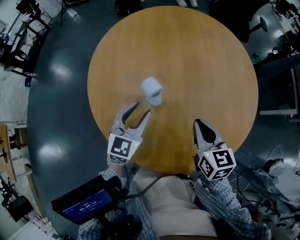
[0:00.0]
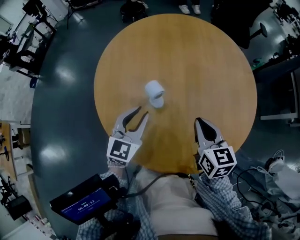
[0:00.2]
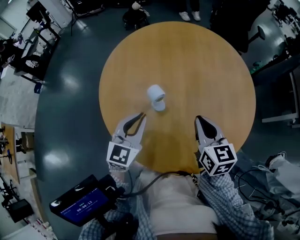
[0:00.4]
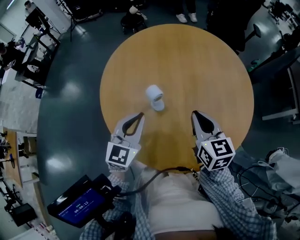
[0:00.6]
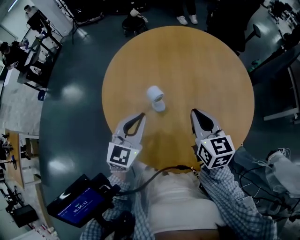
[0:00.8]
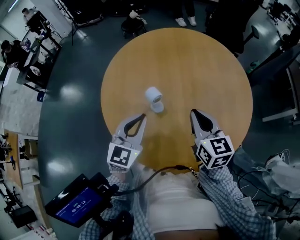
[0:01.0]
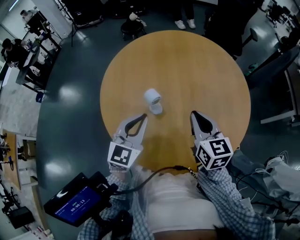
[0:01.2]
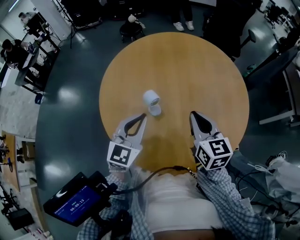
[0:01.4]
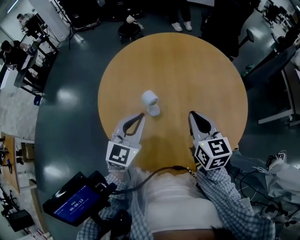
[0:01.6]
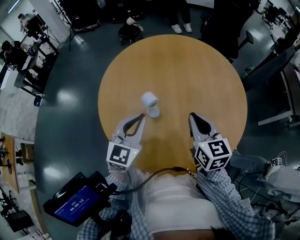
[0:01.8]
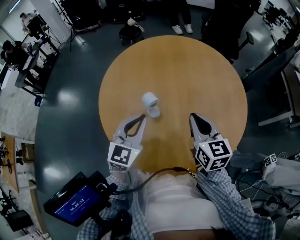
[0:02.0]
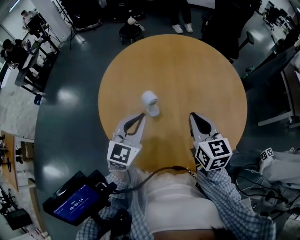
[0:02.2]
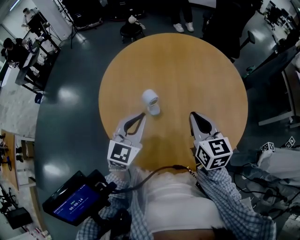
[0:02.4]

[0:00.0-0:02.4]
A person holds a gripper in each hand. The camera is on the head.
0:00.0 to 0:01.2: Both grippers move upward, about 10 cm. The left gripper closes.
0:01.2 to 0:02.4: The grippers move only a little.

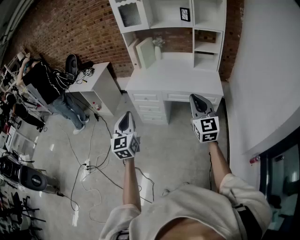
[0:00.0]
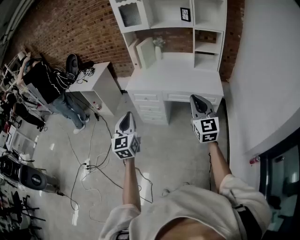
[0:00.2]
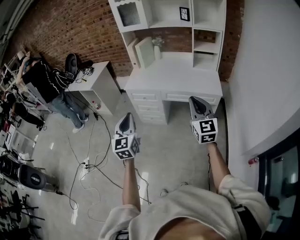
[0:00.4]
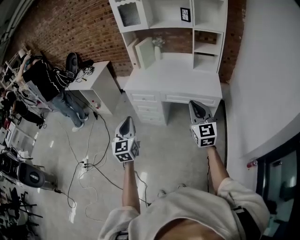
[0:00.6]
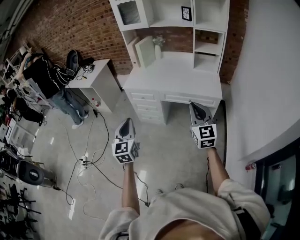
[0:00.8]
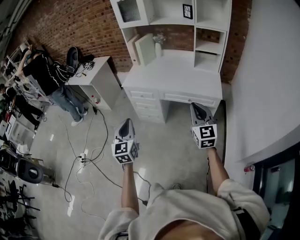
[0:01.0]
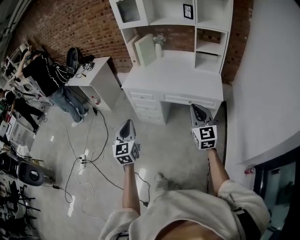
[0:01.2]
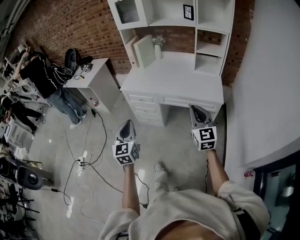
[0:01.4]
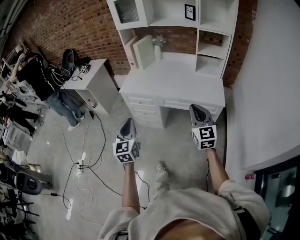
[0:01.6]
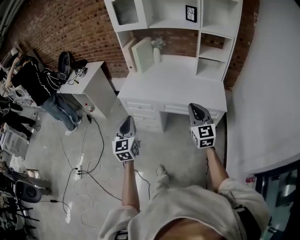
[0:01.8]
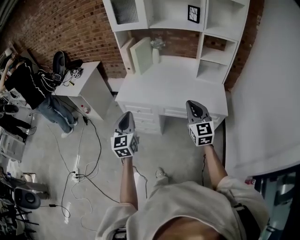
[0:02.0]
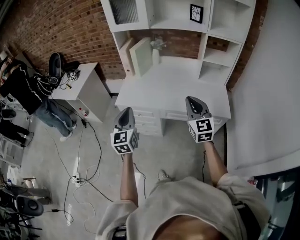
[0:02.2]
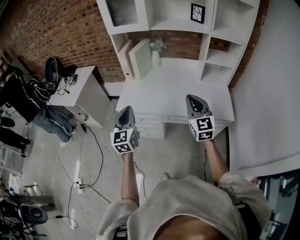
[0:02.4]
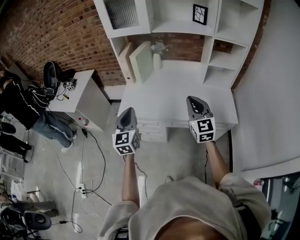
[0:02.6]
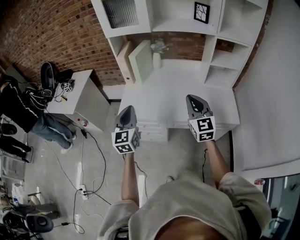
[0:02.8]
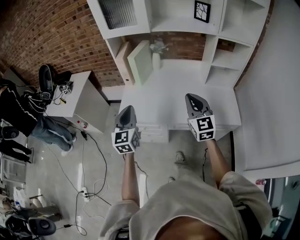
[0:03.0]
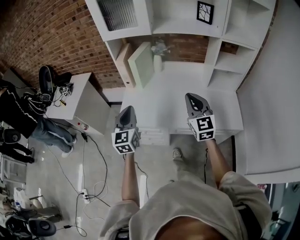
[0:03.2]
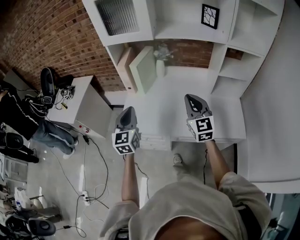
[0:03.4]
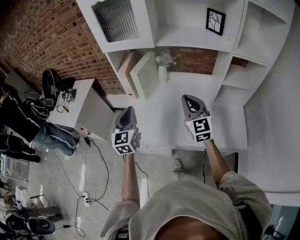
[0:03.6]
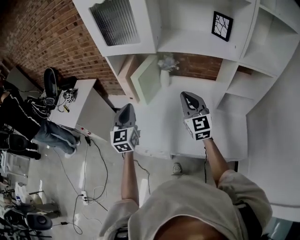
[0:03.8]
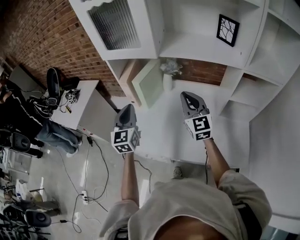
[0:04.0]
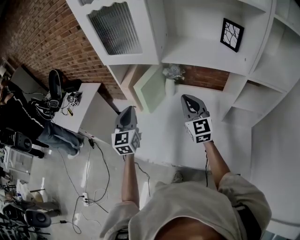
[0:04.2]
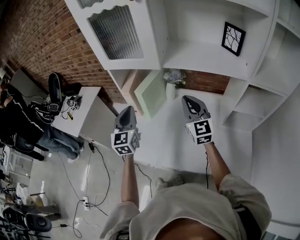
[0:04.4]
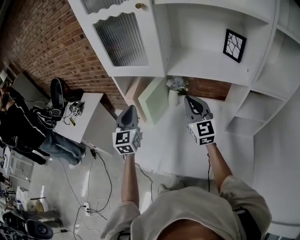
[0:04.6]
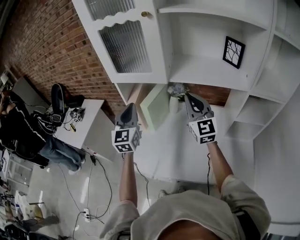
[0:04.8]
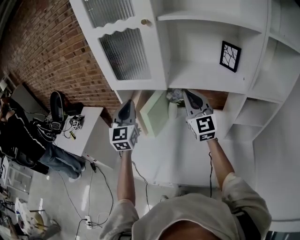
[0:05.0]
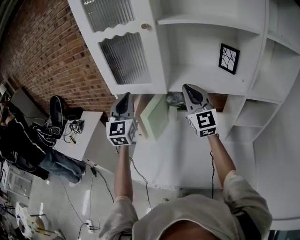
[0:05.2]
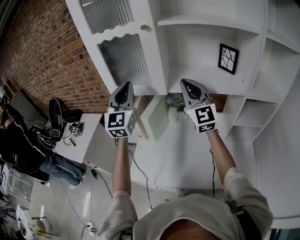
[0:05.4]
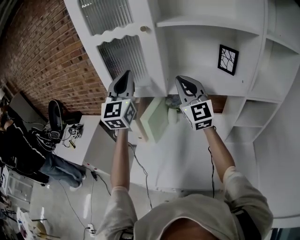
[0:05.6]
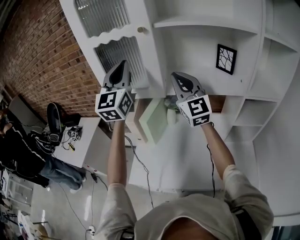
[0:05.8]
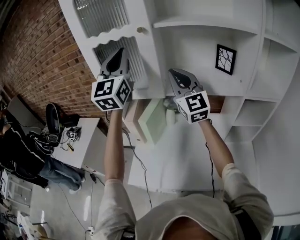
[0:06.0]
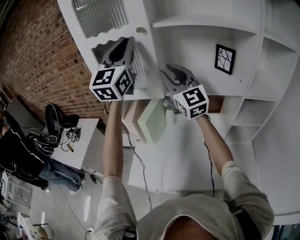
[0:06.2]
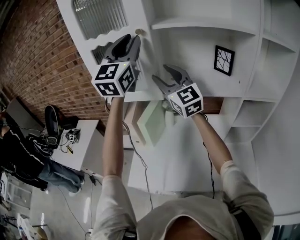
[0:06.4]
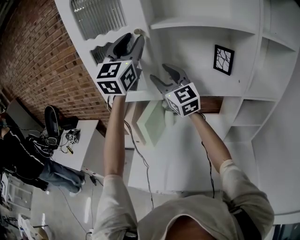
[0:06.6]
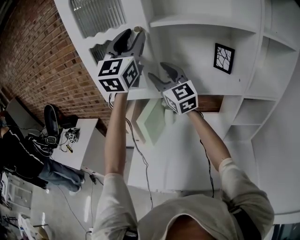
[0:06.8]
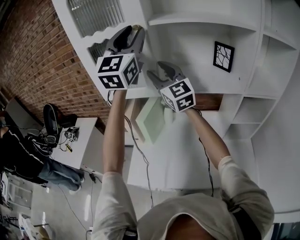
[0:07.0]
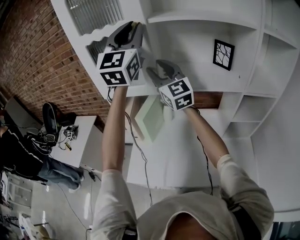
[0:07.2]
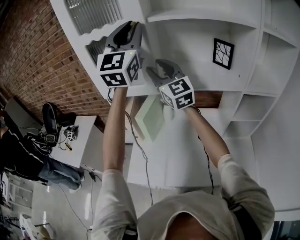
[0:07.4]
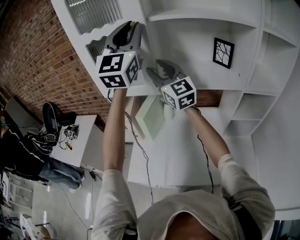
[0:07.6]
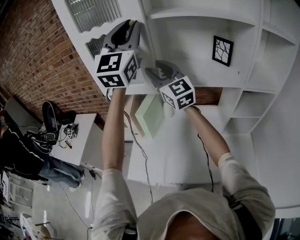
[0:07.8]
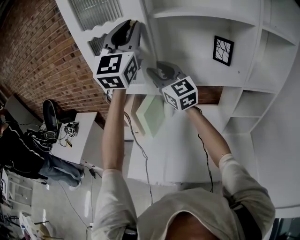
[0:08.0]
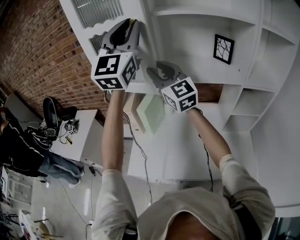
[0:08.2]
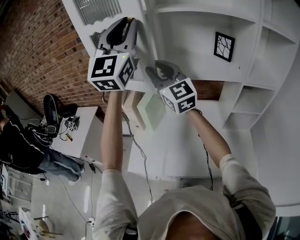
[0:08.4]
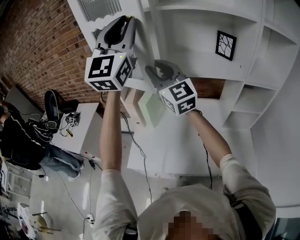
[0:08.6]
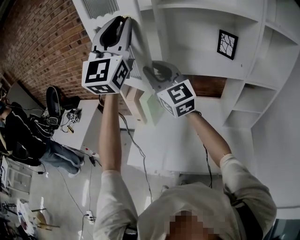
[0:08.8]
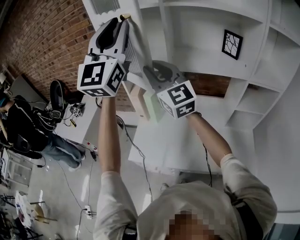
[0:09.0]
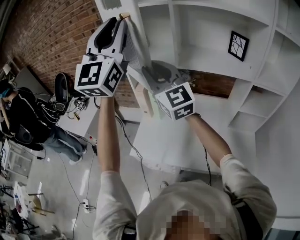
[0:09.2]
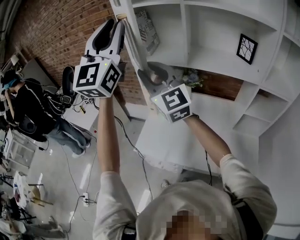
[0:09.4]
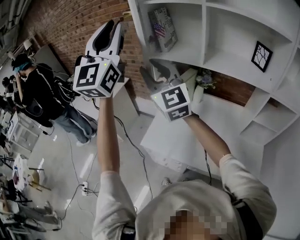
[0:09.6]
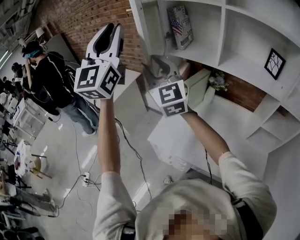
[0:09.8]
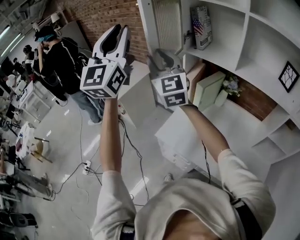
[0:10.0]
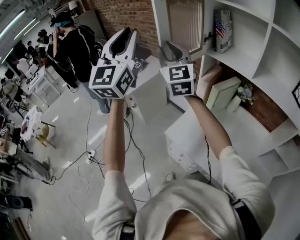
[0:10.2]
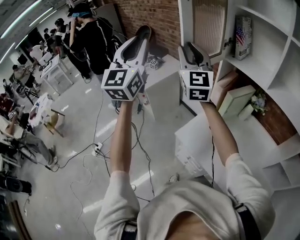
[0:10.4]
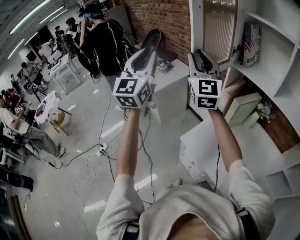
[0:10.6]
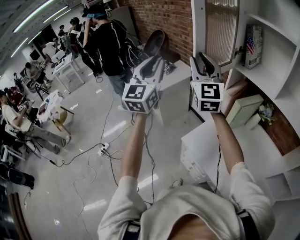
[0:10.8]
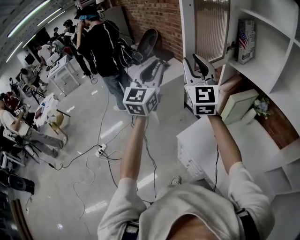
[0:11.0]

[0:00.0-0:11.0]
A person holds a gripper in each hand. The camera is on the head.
0:00.0 to 0:01.6: The grippers both shift forward, downward and to the right by about 15 cm.
0:01.6 to 0:03.2: The two grippers travel together, forward, about 40 cm.
0:03.2 to 0:04.8: Both grippers move forward and upward, about 30 cm.
0:04.8 to 0:06.2: The right gripper is displaced upward and forward by roughly 15 cm, and opens its fingers, while the left gripper heads upward, covering roughly 30 cm, and turns by roughly 30 degrees.
0:06.2 to 0:07.8: The right gripper shifts by roughly 5 cm.
0:07.8 to 0:09.4: The two grippers go roughly 20 cm backward and to the left.
0:09.4 to 0:11.0: The left gripper moves to the left and downward, approximately 30 cm, and swivels about 40 degrees. The right gripper shifts some 20 cm to the left.

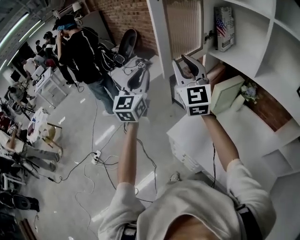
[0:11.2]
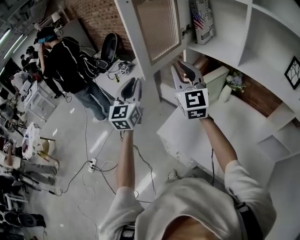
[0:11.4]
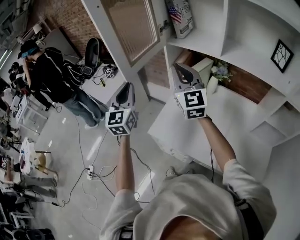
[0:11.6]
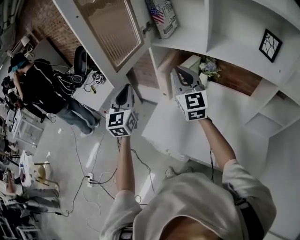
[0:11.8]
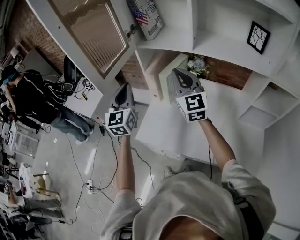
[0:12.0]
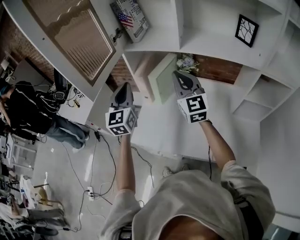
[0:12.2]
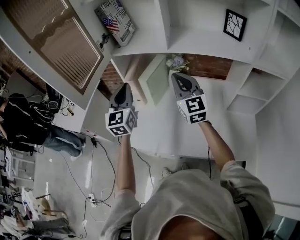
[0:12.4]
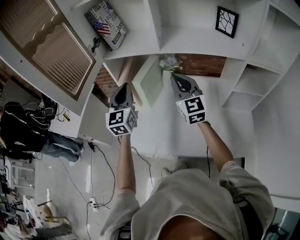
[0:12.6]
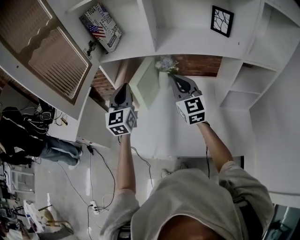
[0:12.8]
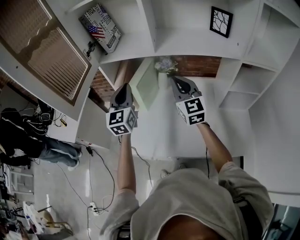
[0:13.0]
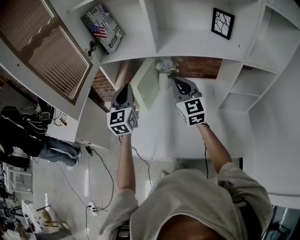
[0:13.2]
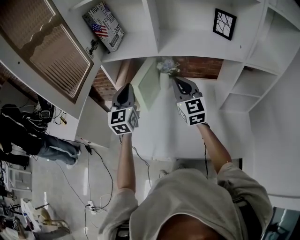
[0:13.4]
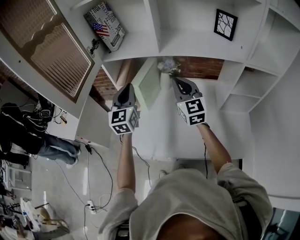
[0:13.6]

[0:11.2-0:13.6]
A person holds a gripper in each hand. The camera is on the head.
0:11.2 to 0:12.4: The left gripper ends up some 30 cm from where it was, and swivels about 20 degrees, while the right gripper changes place by some 35 cm, changes its angle by roughly 30 degrees, and closes its fingers.
0:12.4 to 0:13.6: The left gripper moves about 5 cm.

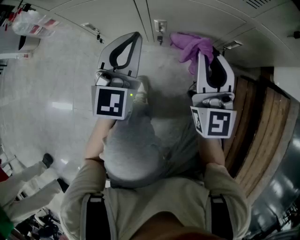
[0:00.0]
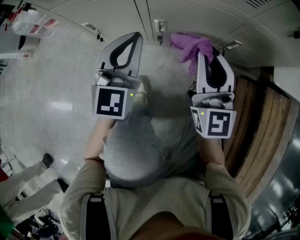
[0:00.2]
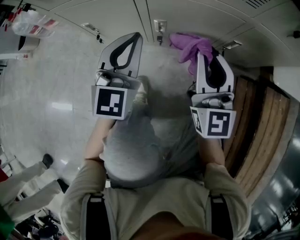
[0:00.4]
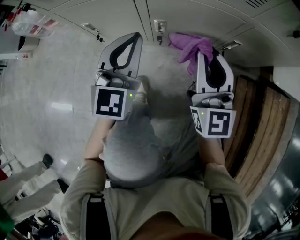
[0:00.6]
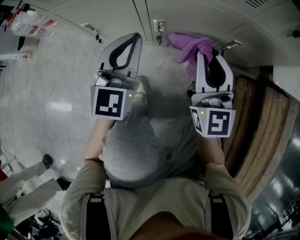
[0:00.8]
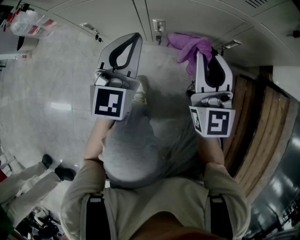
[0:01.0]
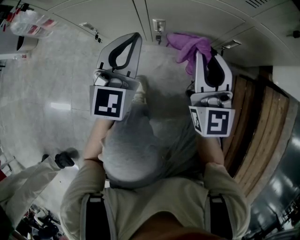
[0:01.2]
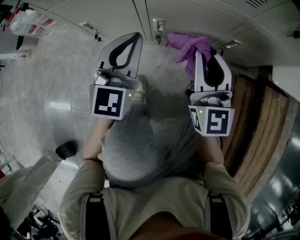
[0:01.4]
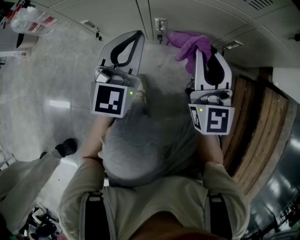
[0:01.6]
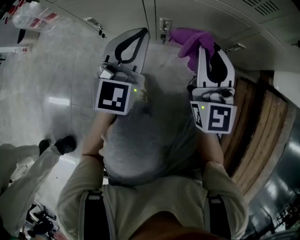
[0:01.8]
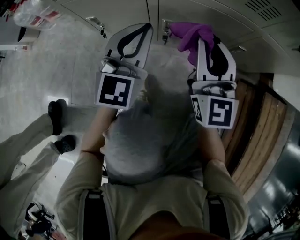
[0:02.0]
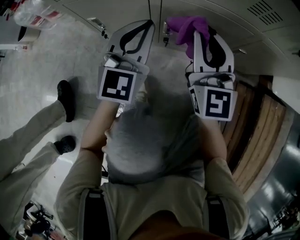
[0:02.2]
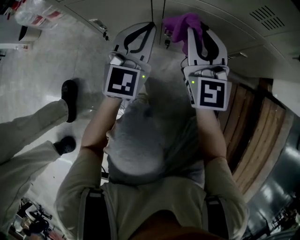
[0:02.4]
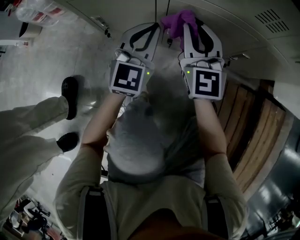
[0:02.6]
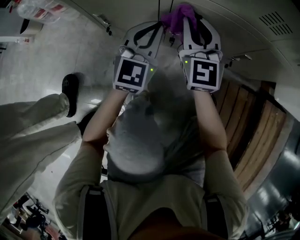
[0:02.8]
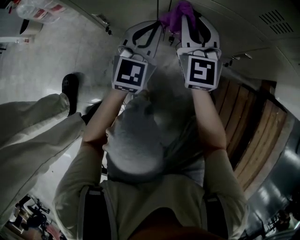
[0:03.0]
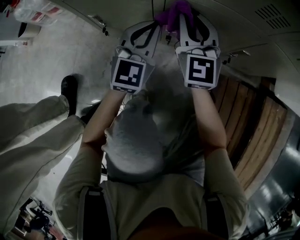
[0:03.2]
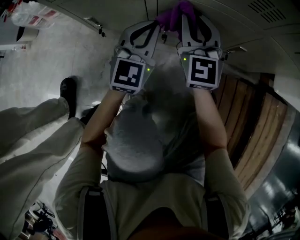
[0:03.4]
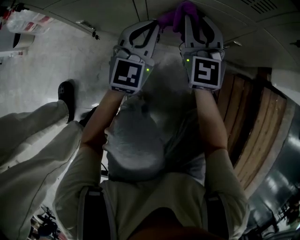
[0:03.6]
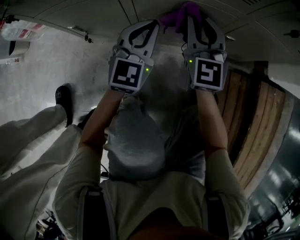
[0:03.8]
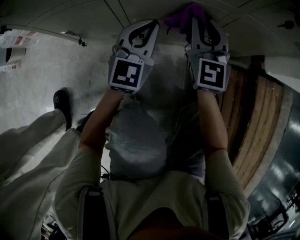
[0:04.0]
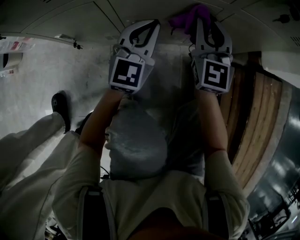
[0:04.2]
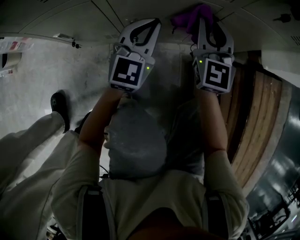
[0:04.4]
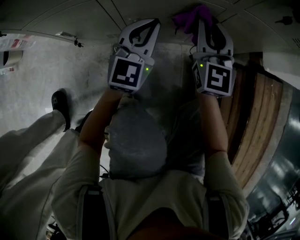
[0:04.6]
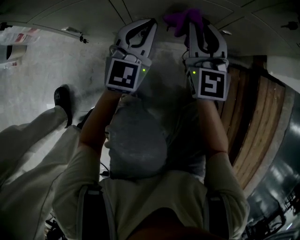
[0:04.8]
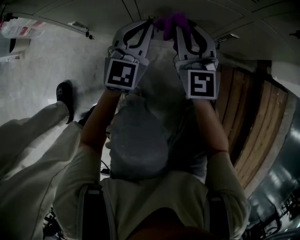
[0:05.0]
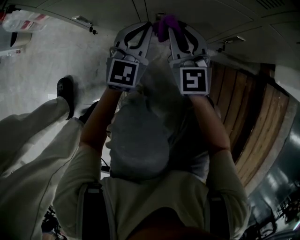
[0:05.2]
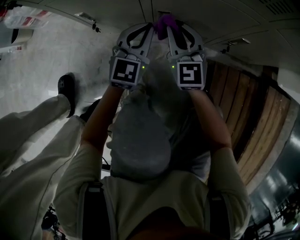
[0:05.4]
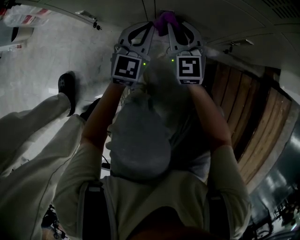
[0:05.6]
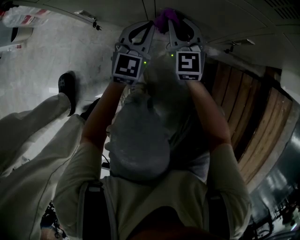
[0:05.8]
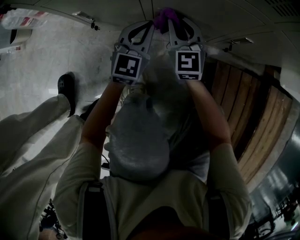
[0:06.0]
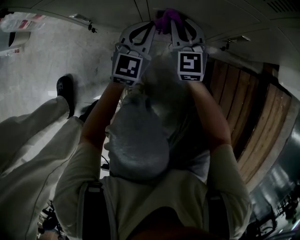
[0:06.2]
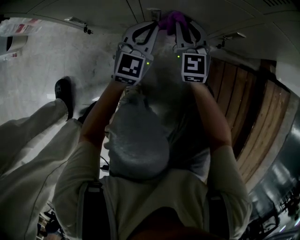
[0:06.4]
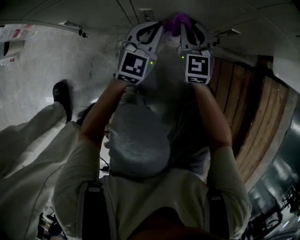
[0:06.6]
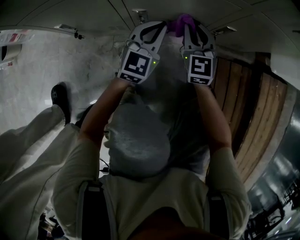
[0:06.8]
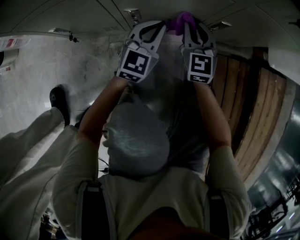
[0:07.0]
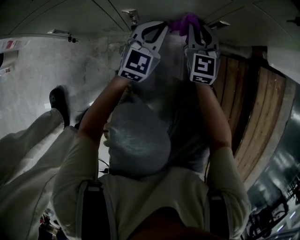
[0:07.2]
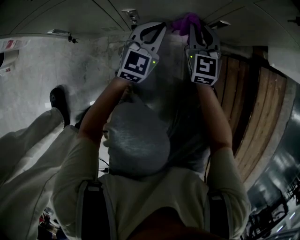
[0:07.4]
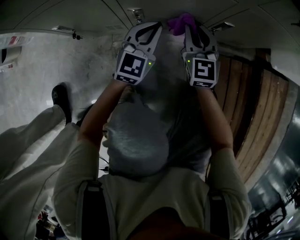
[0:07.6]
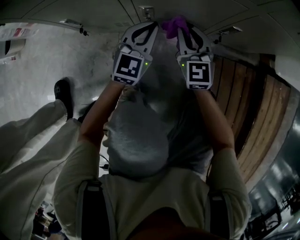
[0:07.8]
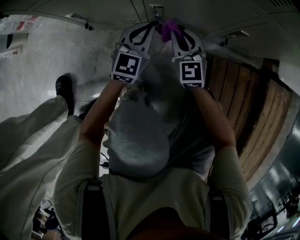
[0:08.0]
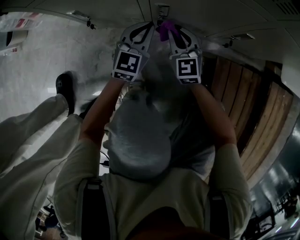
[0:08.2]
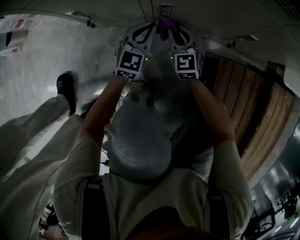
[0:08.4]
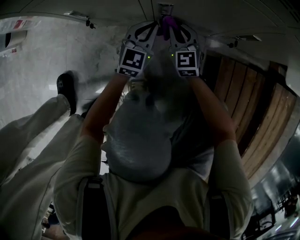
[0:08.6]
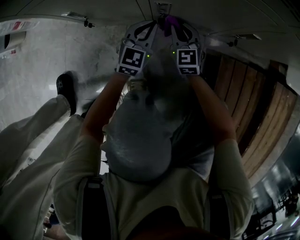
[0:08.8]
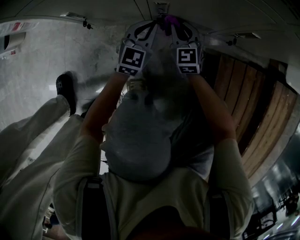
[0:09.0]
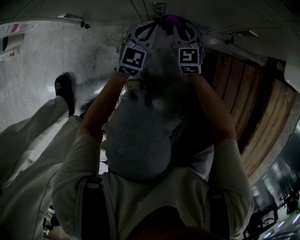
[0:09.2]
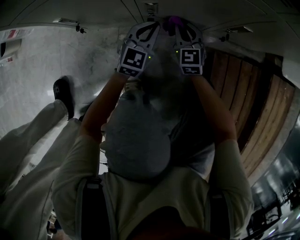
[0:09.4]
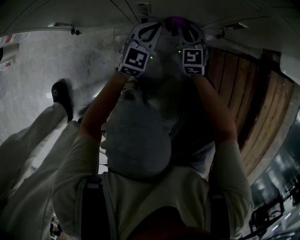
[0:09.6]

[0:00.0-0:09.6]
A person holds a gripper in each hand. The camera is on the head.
0:00.0 to 0:01.6: Neither gripper changes place.
0:01.6 to 0:03.2: The left gripper goes approximately 5 cm forward. Meanwhile the right gripper heads forward and to the left, covering approximately 15 cm.
0:03.2 to 0:04.8: The two grippers go approximately 10 cm to the right.
0:04.8 to 0:06.4: The right gripper heads downward and to the left, covering about 15 cm, while the left gripper shifts approximately 10 cm downward.
0:06.4 to 0:08.0: The right gripper goes to the right and returns, about 10 cm each way; the left gripper moves some 10 cm to the right and comes back.
0:08.0 to 0:09.6: Both grippers move downward and to the right, some 10 cm.
